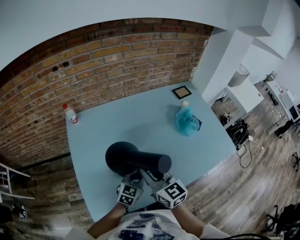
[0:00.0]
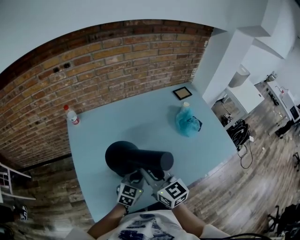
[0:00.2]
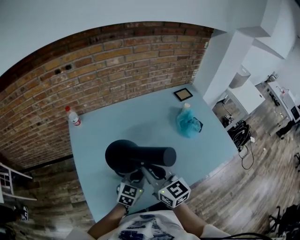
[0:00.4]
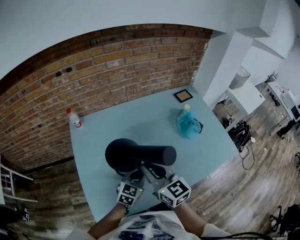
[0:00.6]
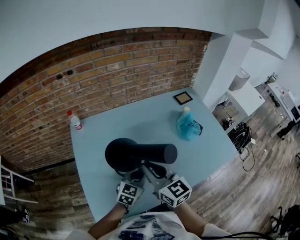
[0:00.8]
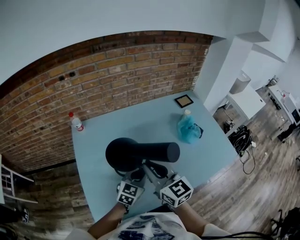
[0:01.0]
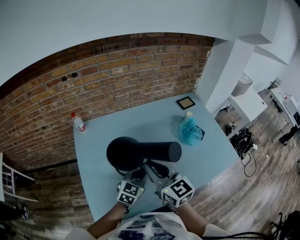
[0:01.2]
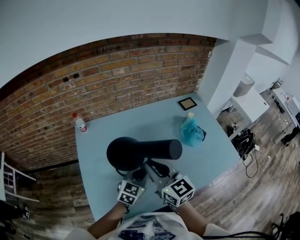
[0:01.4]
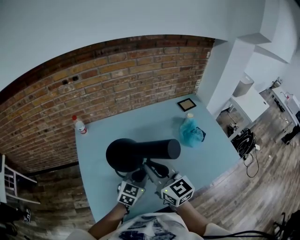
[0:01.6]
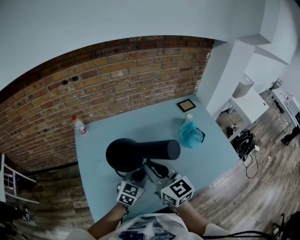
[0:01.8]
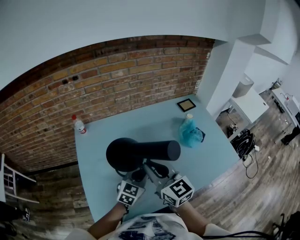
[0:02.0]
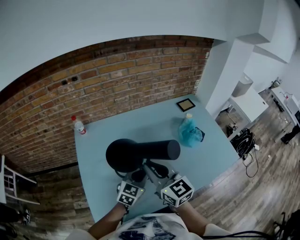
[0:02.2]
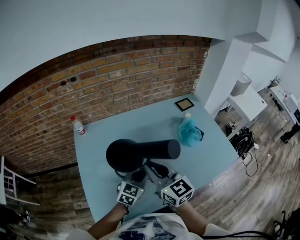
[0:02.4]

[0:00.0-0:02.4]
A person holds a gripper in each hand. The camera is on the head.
0.0 to 1.2 s: The two grippers go some 10 cm upward.
1.2 to 2.4 s: Both grippers stay put.

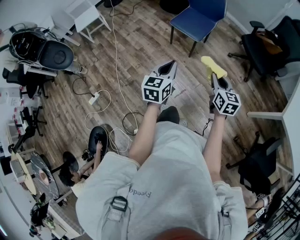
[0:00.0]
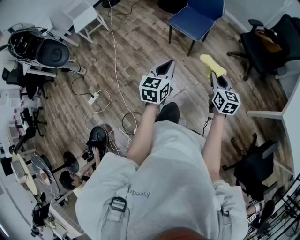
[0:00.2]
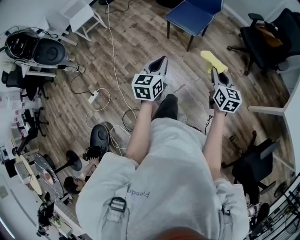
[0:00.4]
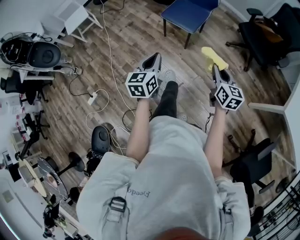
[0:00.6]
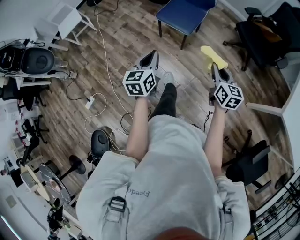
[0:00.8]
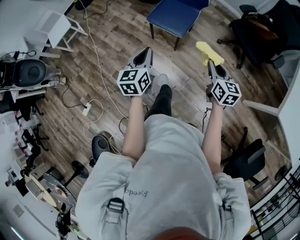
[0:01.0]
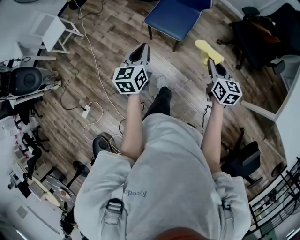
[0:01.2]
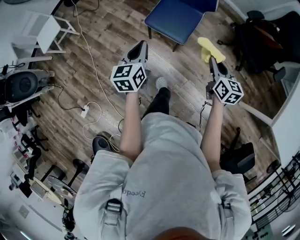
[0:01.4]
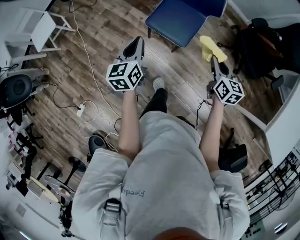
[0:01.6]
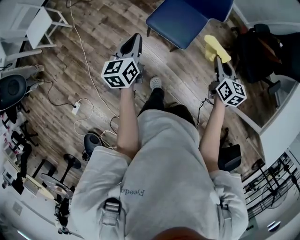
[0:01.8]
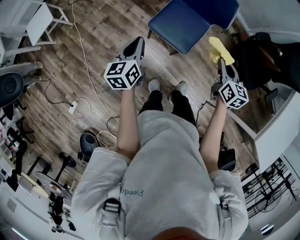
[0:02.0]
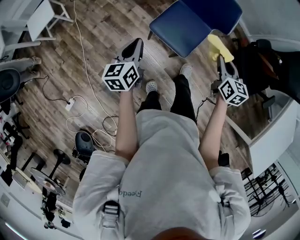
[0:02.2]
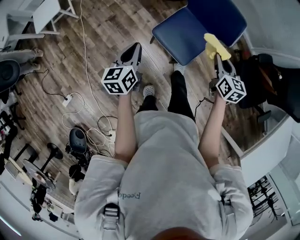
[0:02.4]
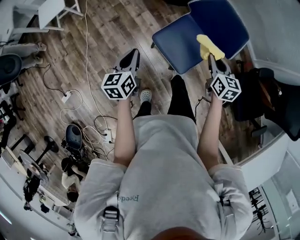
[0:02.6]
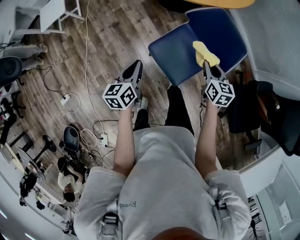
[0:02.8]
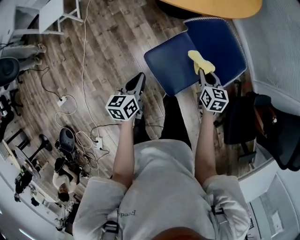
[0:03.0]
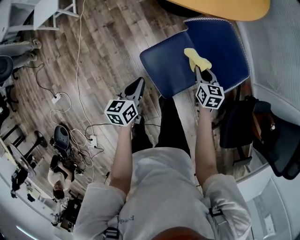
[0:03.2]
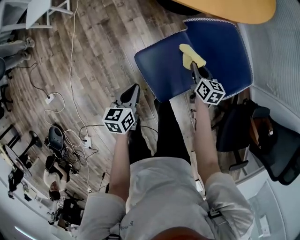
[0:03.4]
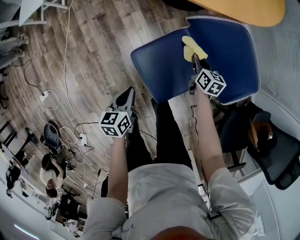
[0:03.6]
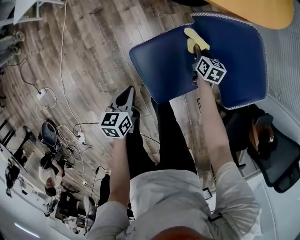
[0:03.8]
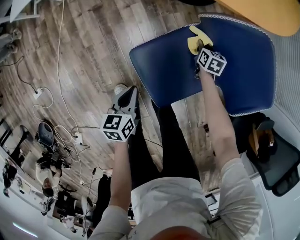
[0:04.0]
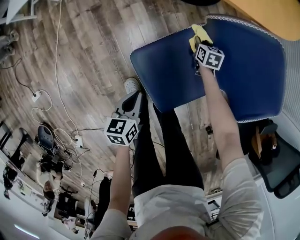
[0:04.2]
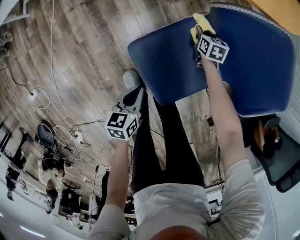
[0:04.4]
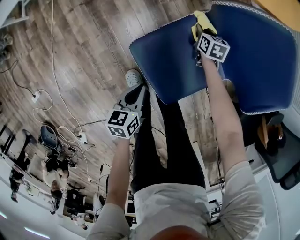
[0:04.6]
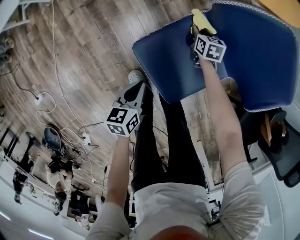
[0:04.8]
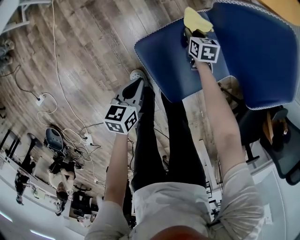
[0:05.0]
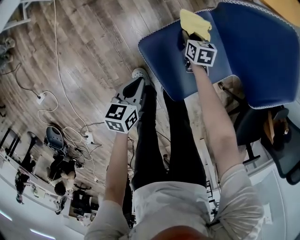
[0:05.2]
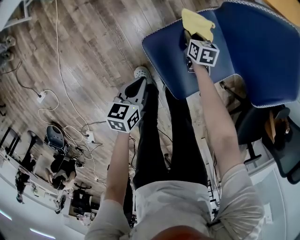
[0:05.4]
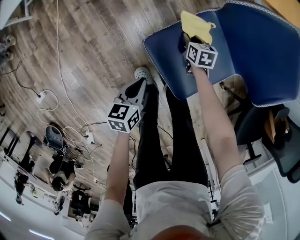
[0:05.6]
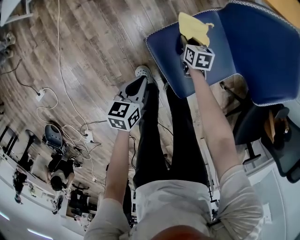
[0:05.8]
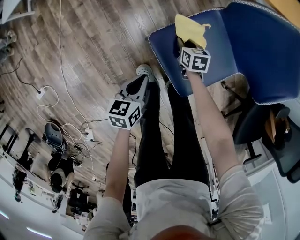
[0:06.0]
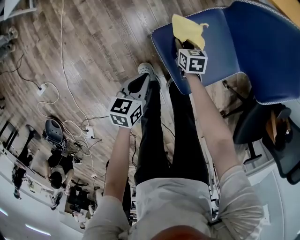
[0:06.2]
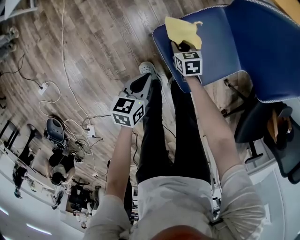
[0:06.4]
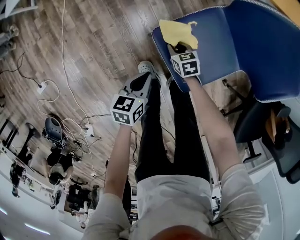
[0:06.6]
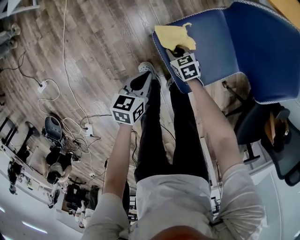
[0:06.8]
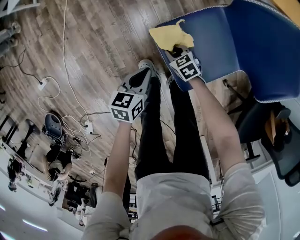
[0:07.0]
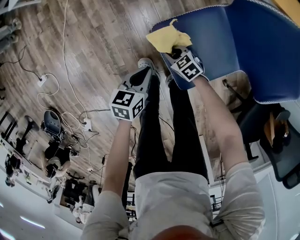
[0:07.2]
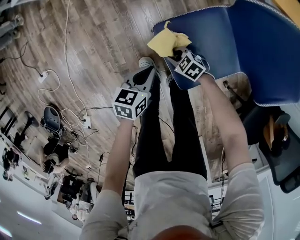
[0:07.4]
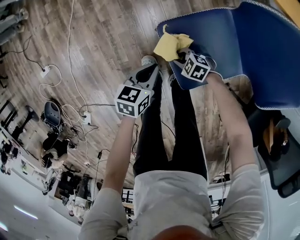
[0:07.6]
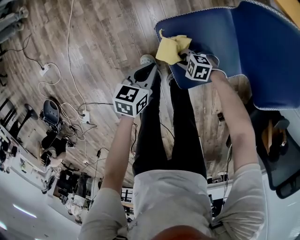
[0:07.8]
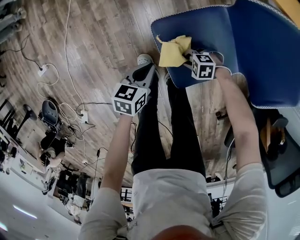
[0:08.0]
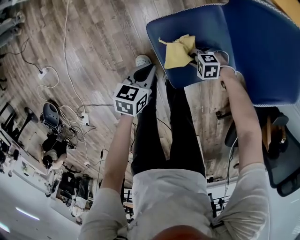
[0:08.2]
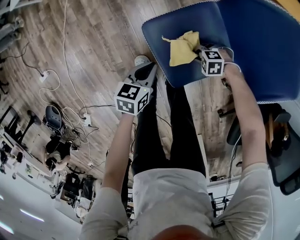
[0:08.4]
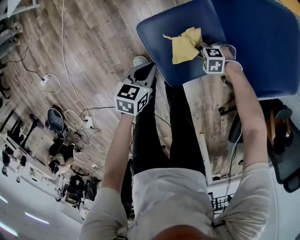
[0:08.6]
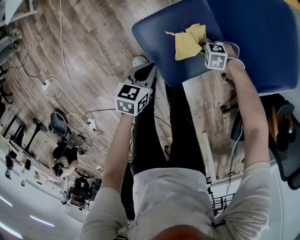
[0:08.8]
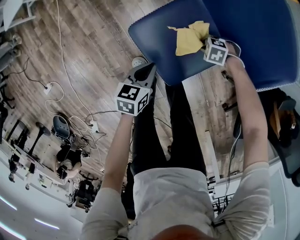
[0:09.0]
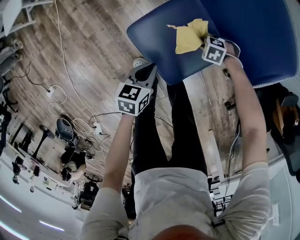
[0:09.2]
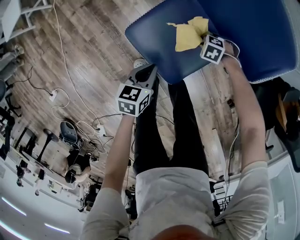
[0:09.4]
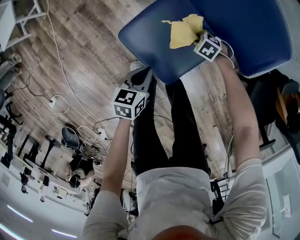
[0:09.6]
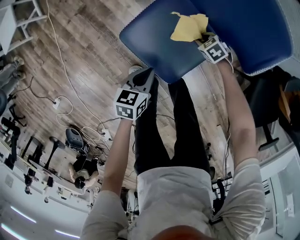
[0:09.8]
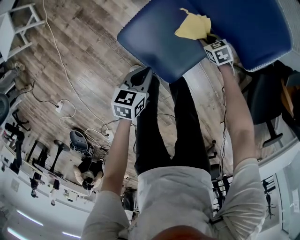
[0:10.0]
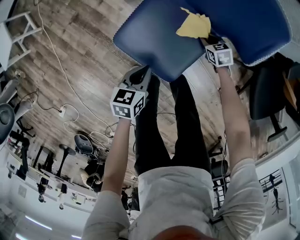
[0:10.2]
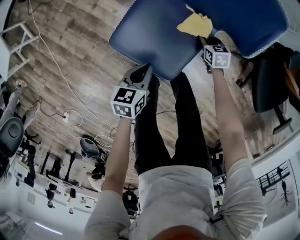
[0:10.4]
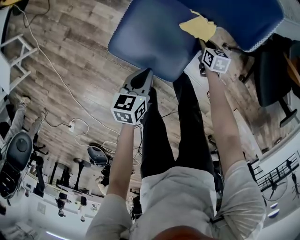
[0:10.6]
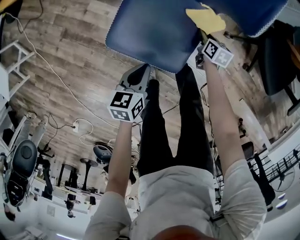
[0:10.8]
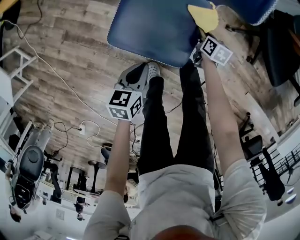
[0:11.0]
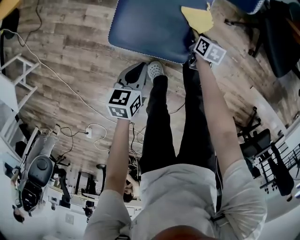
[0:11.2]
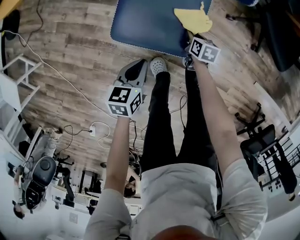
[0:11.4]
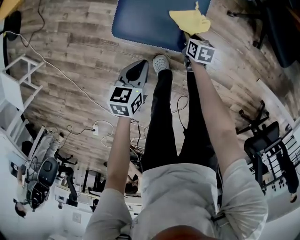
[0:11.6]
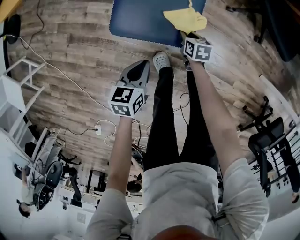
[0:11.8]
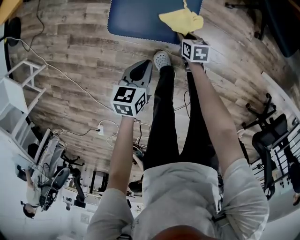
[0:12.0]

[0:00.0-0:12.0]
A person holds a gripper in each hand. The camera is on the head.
0.0 to 1.6 s: The two grippers travel together, forward, approximately 50 cm.
1.6 to 3.0 s: The right gripper shifts about 35 cm forward, and swivels some 30 degrees, while the left gripper goes about 20 cm forward and downward, and changes its angle by about 20 degrees.
3.0 to 4.4 s: The right gripper is displaced downward and forward by about 40 cm; the left gripper heads downward, covering about 25 cm.
4.4 to 6.0 s: The right gripper travels backward and to the left by roughly 20 cm. Meanwhile the left gripper shifts roughly 5 cm to the left.
6.0 to 7.6 s: The right gripper ends up approximately 15 cm from where it was, and rotates around the line of its fingers by about 70 degrees, counterclockwise from behind.
7.6 to 9.0 s: The left gripper moves roughly 10 cm. Meanwhile the right gripper shifts by roughly 25 cm, and swivels roughly 20 degrees.
9.0 to 10.4 s: The right gripper changes place by some 10 cm, and rolls clockwise, seen from behind, by some 80 degrees.
10.4 to 12.0 s: The right gripper goes some 25 cm backward, and changes its angle by some 30 degrees; the left gripper goes approximately 10 cm backward, and changes its angle by about 20 degrees.

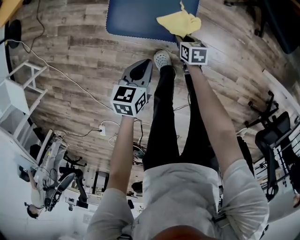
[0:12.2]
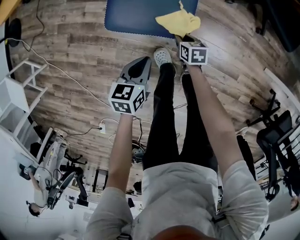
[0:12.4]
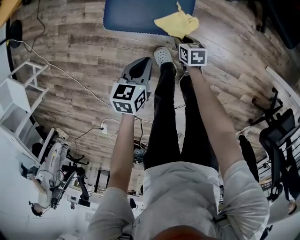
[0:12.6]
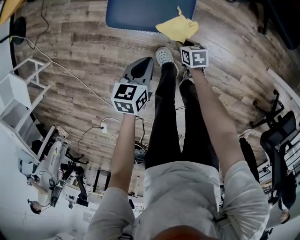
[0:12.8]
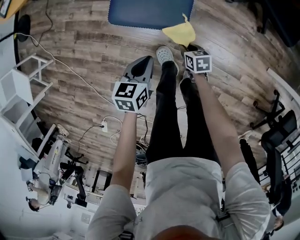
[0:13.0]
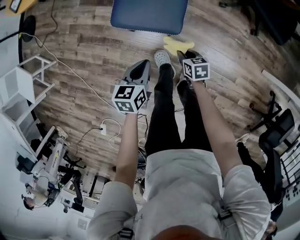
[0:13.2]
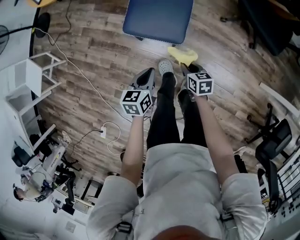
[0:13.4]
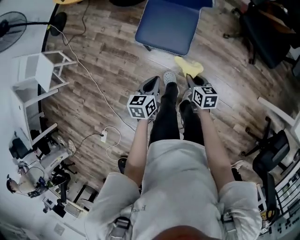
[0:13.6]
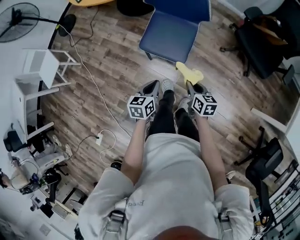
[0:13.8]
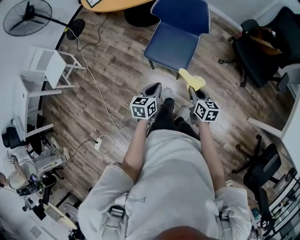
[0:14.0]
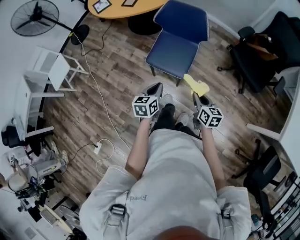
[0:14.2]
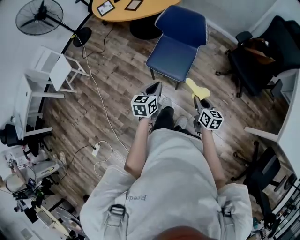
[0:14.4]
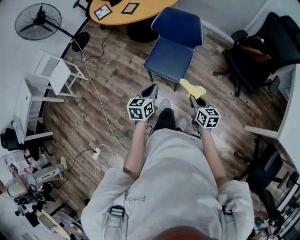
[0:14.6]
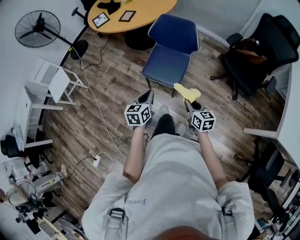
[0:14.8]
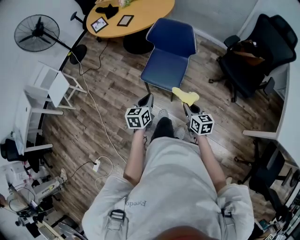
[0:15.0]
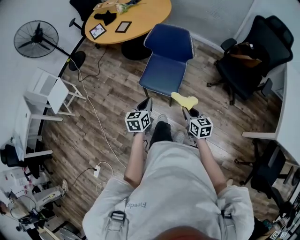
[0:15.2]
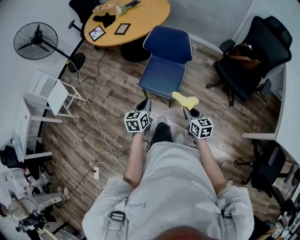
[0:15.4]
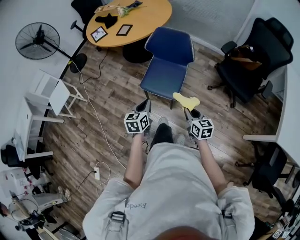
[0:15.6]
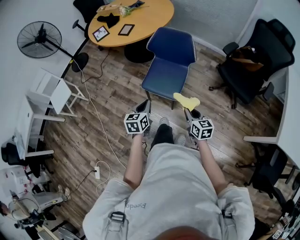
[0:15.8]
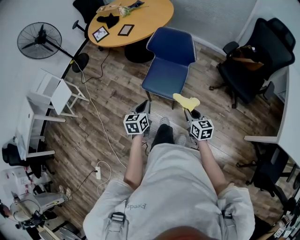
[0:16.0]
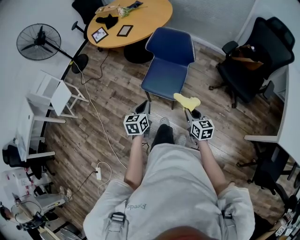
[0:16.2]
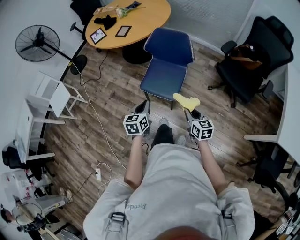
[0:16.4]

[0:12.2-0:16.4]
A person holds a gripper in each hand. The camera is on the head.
12.2 to 13.6 s: The left gripper heads upward and backward, covering some 20 cm. The right gripper is displaced upward and backward by roughly 30 cm.
13.6 to 15.0 s: Both grippers move upward, some 20 cm.
15.0 to 16.4 s: The grippers make only small movements.

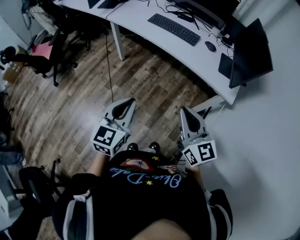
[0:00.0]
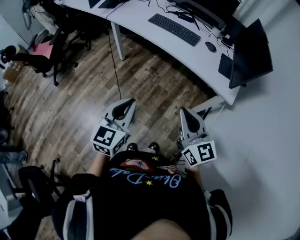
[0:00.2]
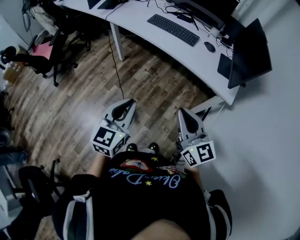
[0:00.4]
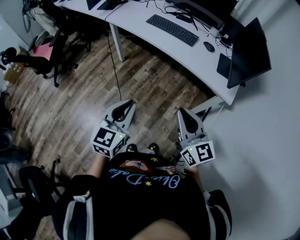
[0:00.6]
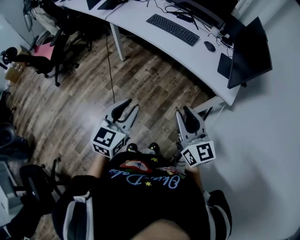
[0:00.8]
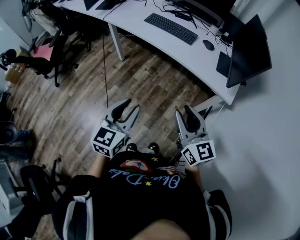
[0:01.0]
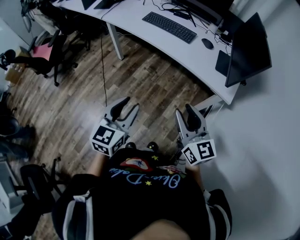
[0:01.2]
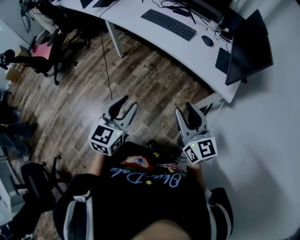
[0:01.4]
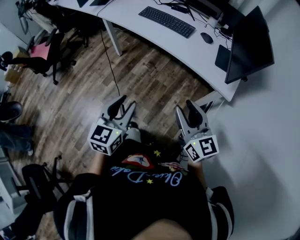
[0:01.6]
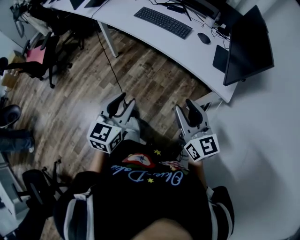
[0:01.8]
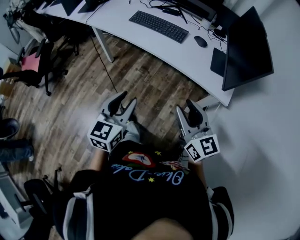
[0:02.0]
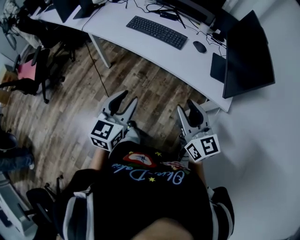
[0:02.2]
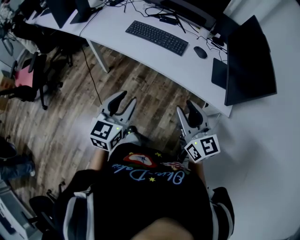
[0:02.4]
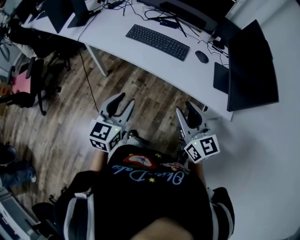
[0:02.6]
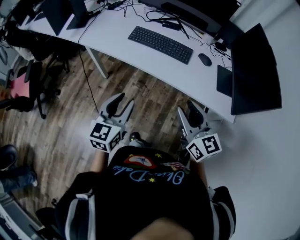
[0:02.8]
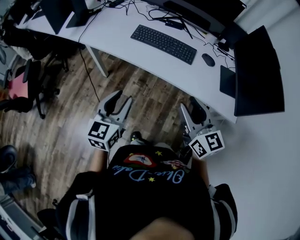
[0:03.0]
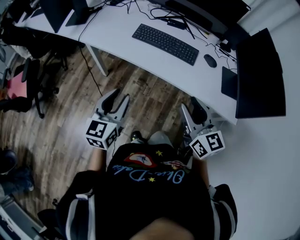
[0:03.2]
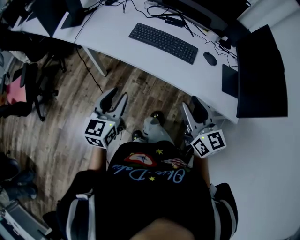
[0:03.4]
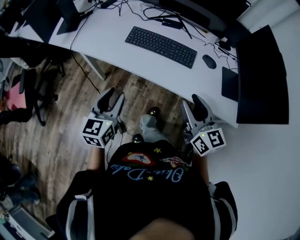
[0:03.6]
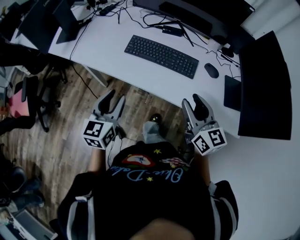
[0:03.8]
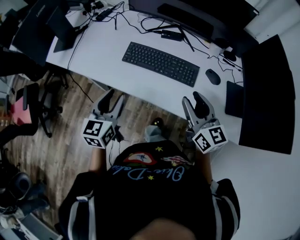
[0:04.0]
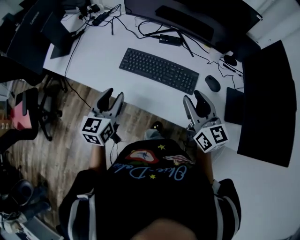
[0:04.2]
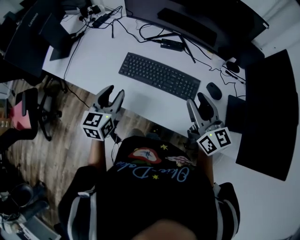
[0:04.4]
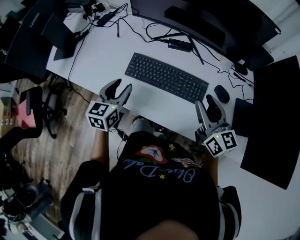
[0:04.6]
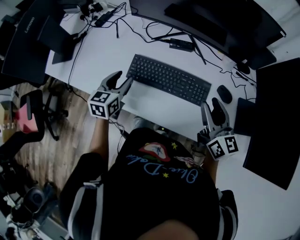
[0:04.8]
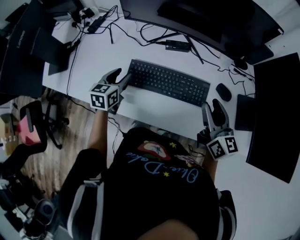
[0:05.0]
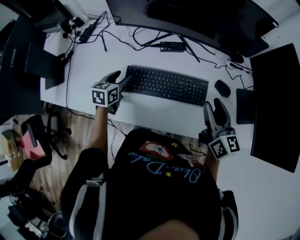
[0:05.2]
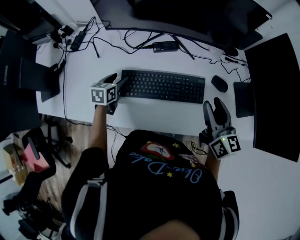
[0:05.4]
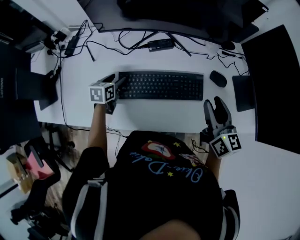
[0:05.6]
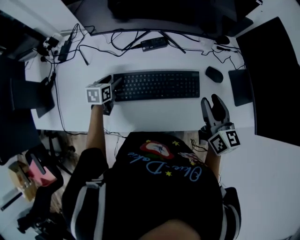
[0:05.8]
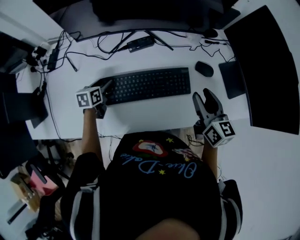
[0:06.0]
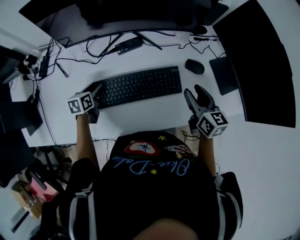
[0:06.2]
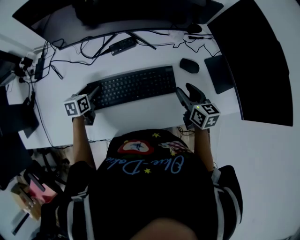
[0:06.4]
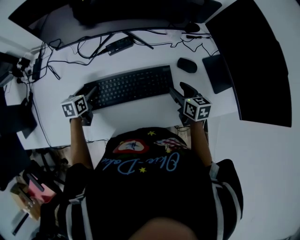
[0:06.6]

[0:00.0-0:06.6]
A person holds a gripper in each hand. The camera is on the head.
0.0 to 1.6 s: The grippers both shift to the right by roughly 5 cm. The right gripper opens its fingers; the left gripper opens up.
1.6 to 3.2 s: Both grippers move forward and to the left, some 30 cm.
3.2 to 5.0 s: The grippers both shift forward by some 40 cm. The left gripper changes its angle by about 20 degrees; the right gripper turns by roughly 20 degrees.
5.0 to 6.6 s: The left gripper is displaced downward and forward by roughly 15 cm, and changes its angle by about 20 degrees. Meanwhile the right gripper travels downward by approximately 15 cm, and changes its angle by about 30 degrees.
